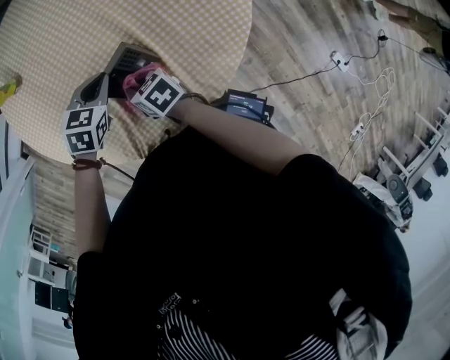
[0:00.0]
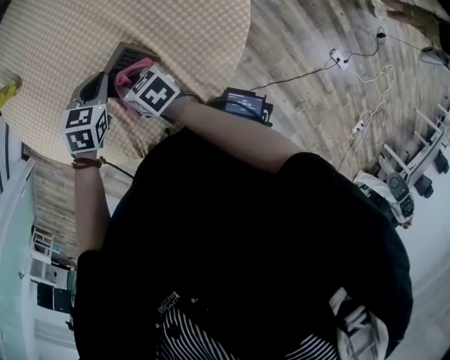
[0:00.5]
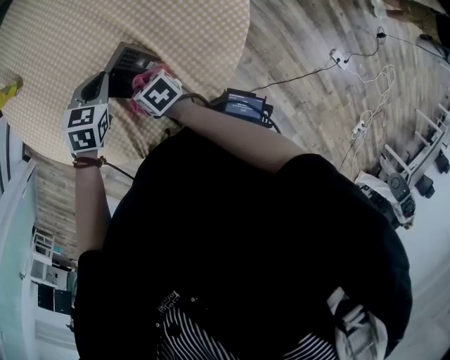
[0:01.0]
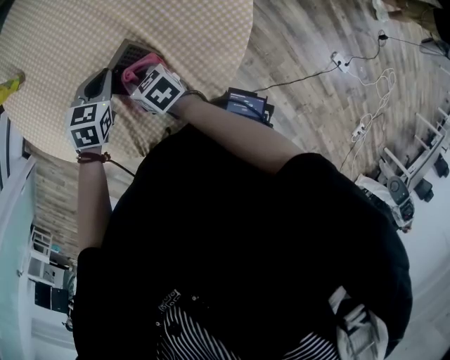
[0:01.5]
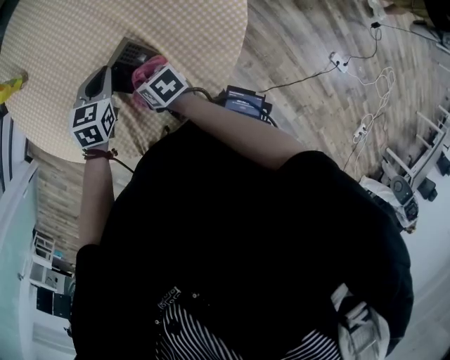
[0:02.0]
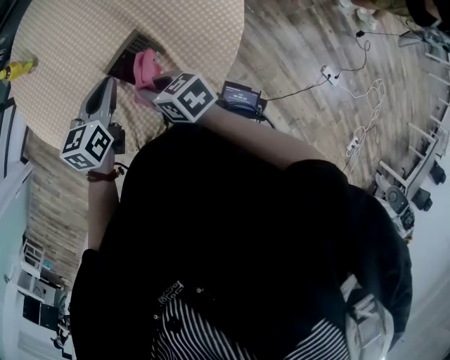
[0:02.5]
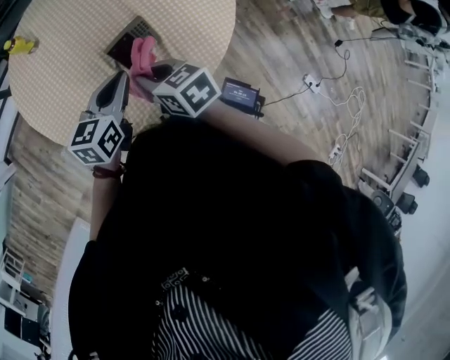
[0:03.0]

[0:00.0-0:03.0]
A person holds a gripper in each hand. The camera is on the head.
0:01.5 to 0:03.0: Both grippers travel together upward and backward, roughly 15 cm. The left gripper turns by some 40 degrees.

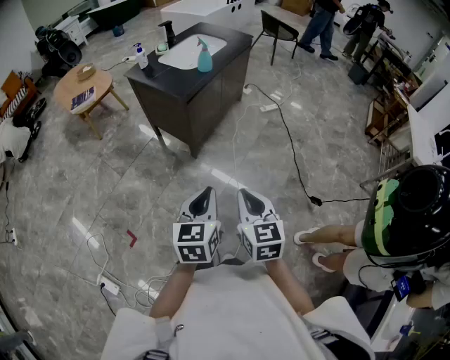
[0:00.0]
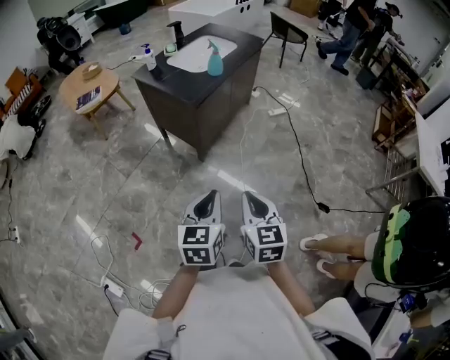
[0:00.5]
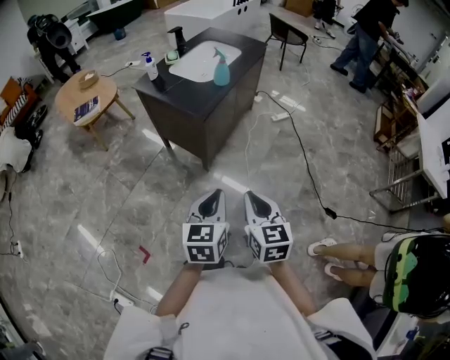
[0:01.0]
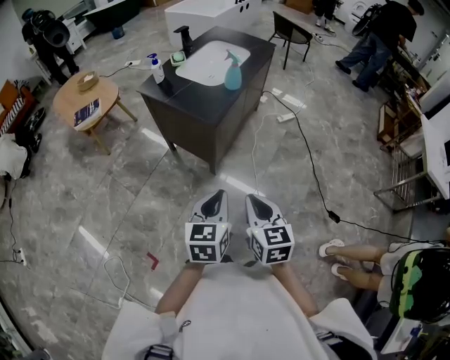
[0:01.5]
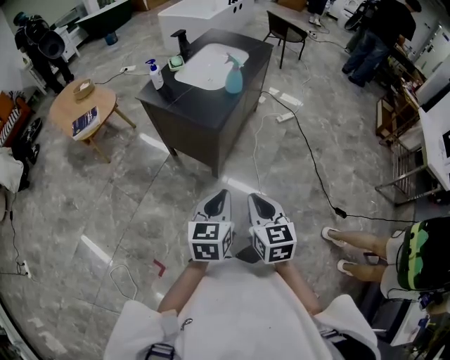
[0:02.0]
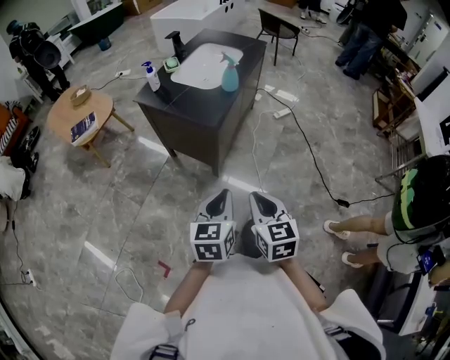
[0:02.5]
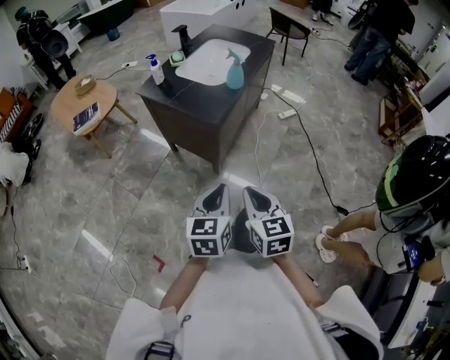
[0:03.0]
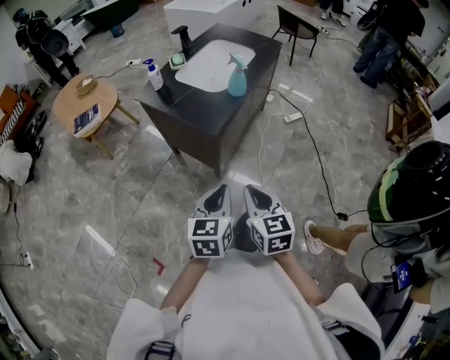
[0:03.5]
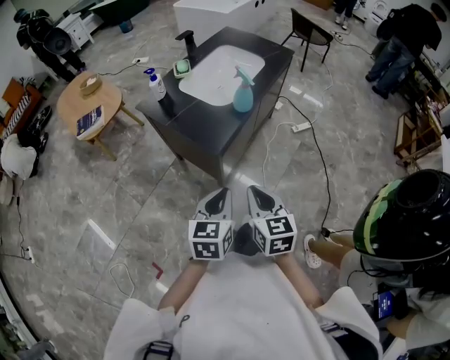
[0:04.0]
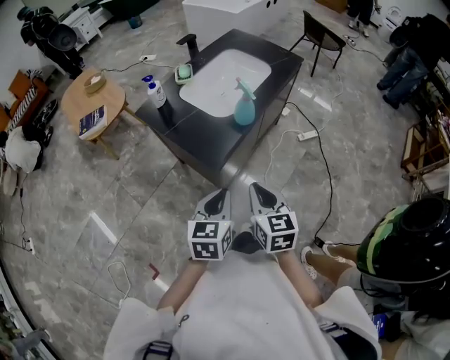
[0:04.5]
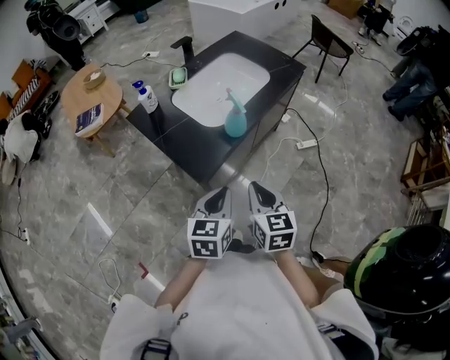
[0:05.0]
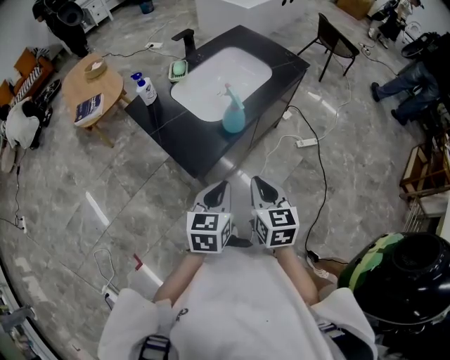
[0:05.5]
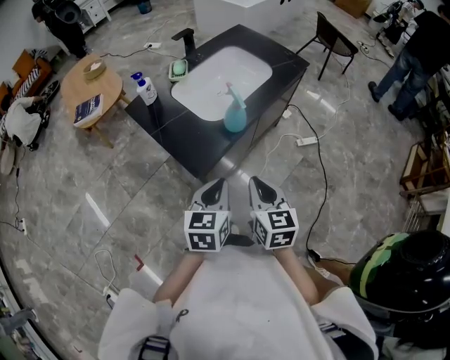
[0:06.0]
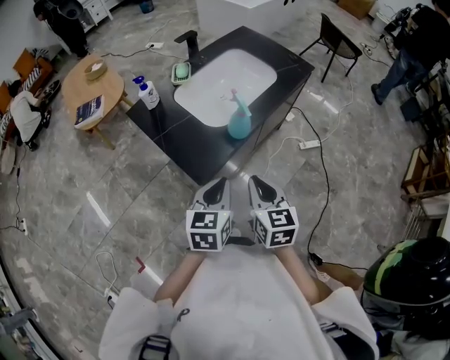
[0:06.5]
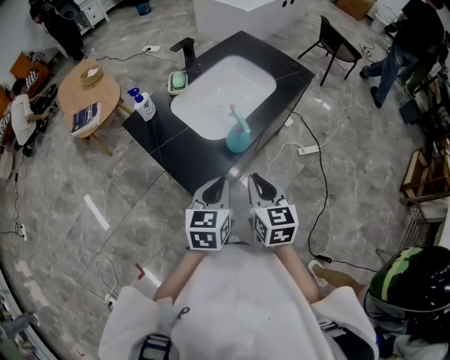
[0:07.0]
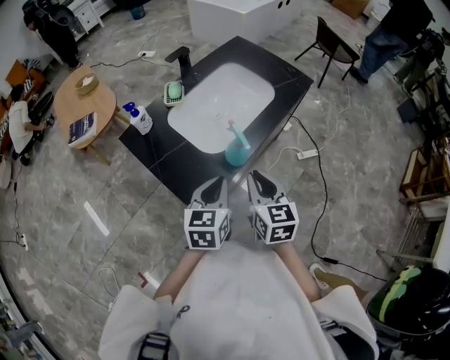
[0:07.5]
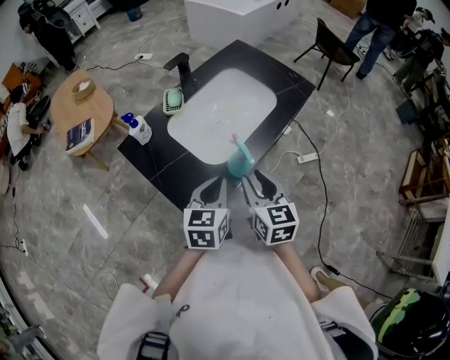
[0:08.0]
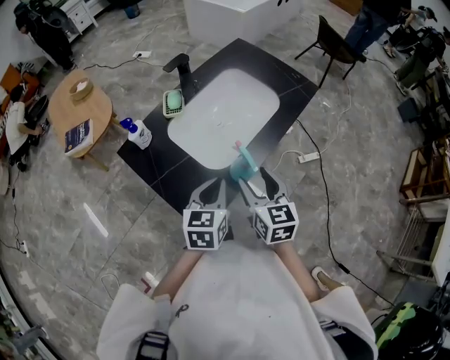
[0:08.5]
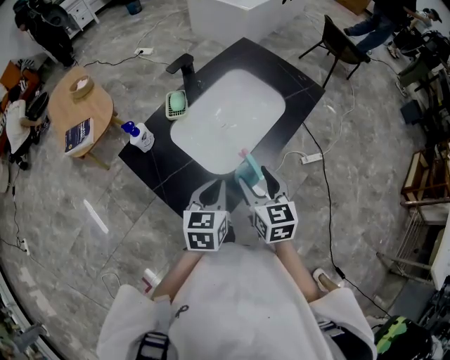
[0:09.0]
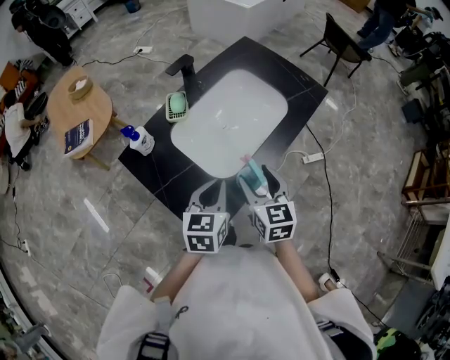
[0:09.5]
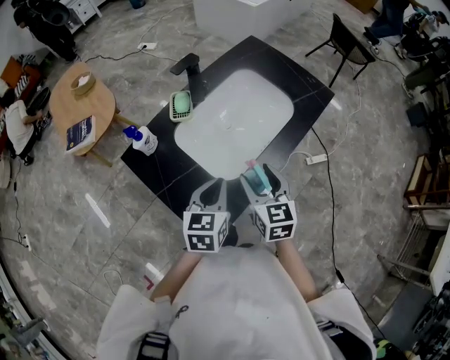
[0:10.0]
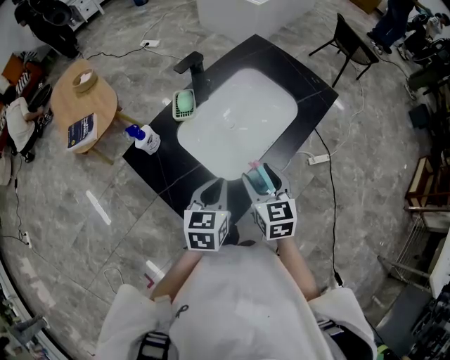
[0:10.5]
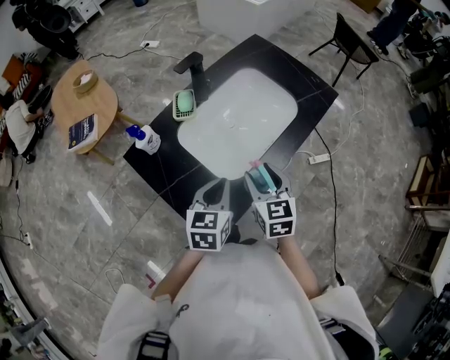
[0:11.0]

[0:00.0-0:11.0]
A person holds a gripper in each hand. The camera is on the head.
0:00.0 to 0:02.0: The grippers both shift forward and to the left by approximately 25 cm.
0:02.0 to 0:03.5: The grippers both shift forward by some 10 cm.
0:03.5 to 0:05.5: Both grippers move forward and to the right, about 25 cm.
0:05.5 to 0:07.5: The two grippers go roughly 15 cm forward.
0:07.5 to 0:09.0: The two grippers go some 10 cm forward. The right gripper opens up.
0:09.0 to 0:11.0: The right gripper ends up roughly 5 cm from where it was.

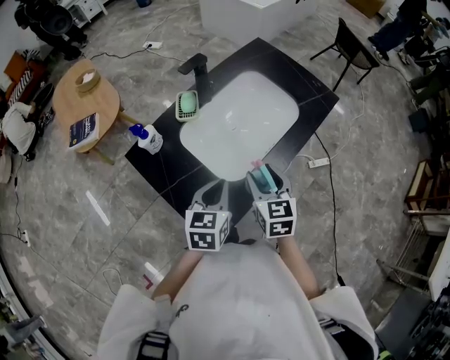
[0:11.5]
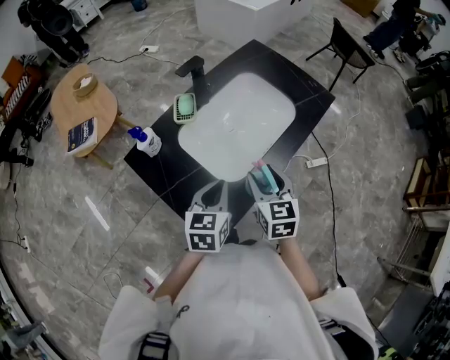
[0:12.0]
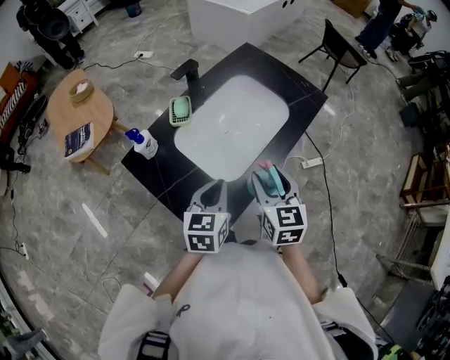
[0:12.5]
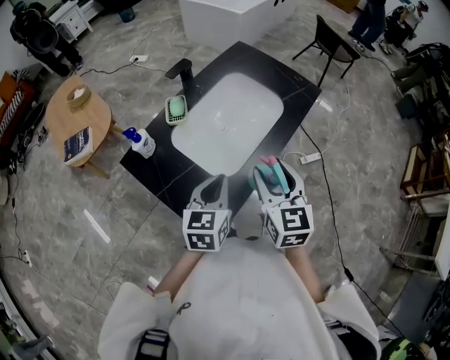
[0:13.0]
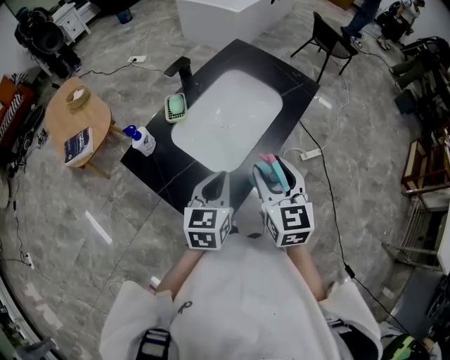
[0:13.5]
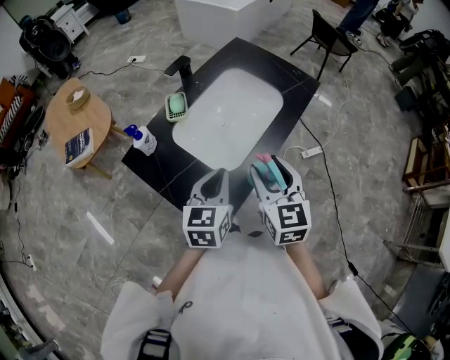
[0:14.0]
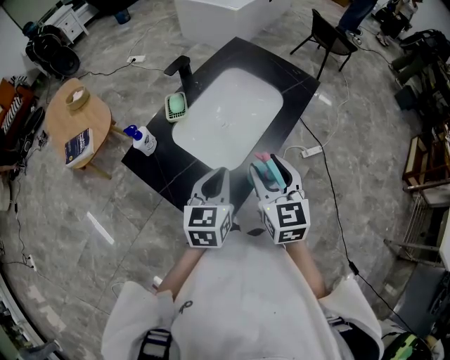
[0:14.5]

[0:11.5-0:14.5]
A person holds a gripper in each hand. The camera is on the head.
0:11.5 to 0:13.0: The right gripper goes some 10 cm upward.
0:13.0 to 0:14.5: The grippers make only small movements.

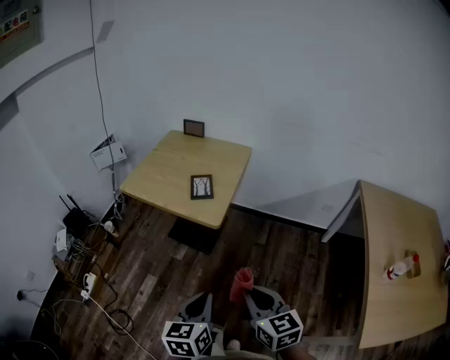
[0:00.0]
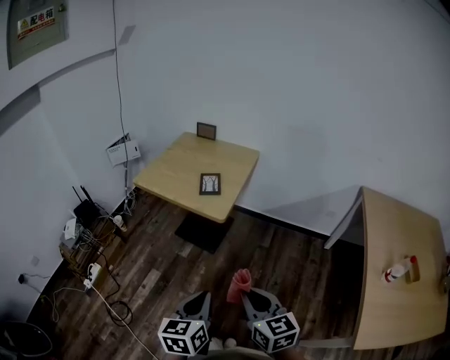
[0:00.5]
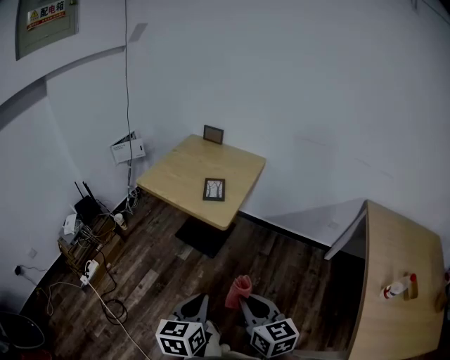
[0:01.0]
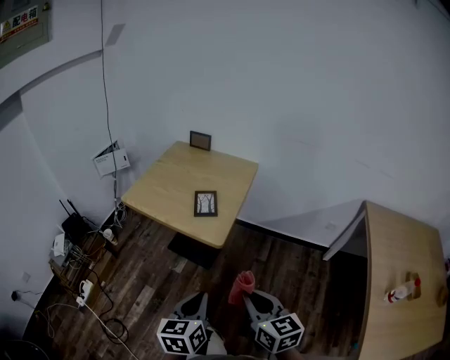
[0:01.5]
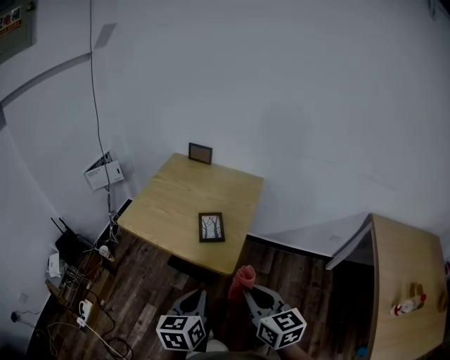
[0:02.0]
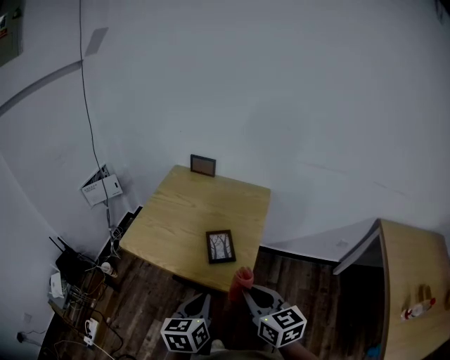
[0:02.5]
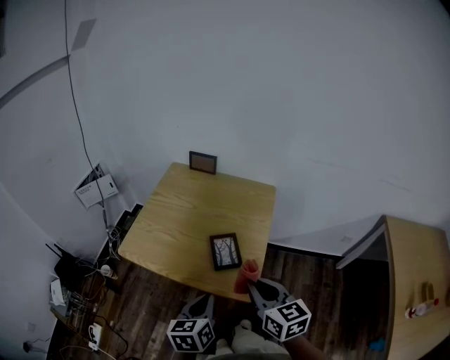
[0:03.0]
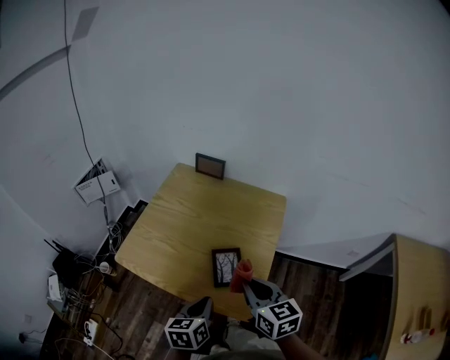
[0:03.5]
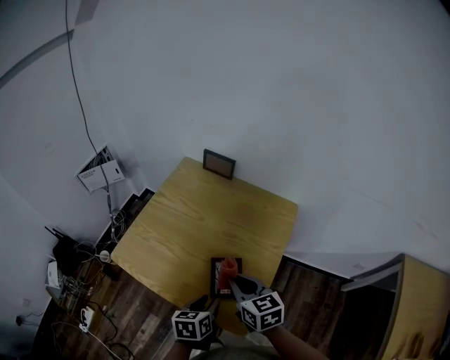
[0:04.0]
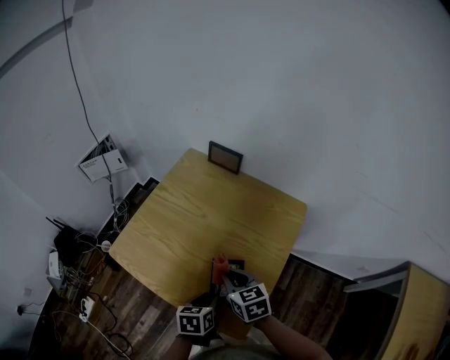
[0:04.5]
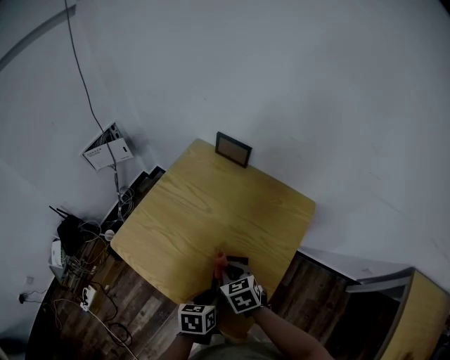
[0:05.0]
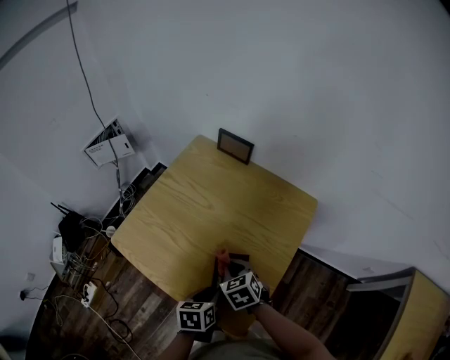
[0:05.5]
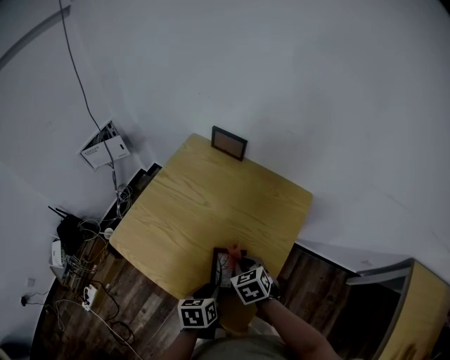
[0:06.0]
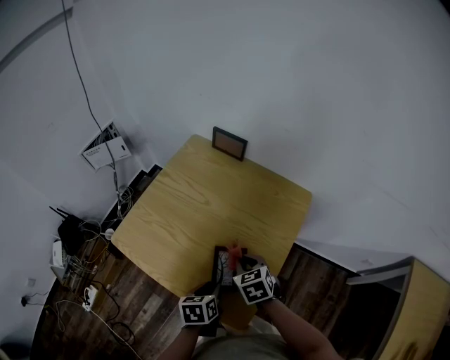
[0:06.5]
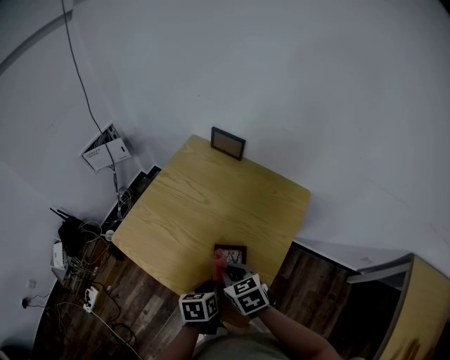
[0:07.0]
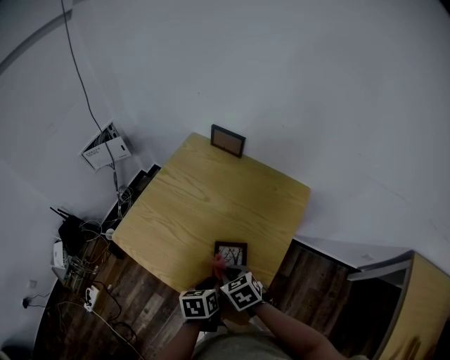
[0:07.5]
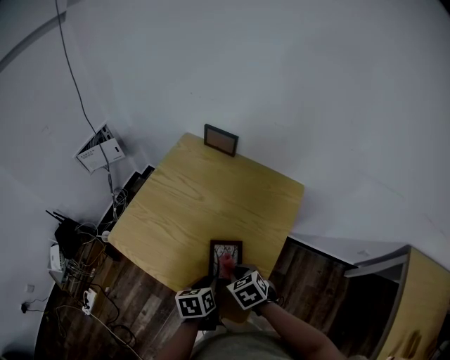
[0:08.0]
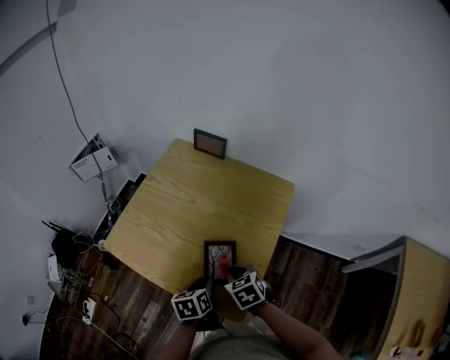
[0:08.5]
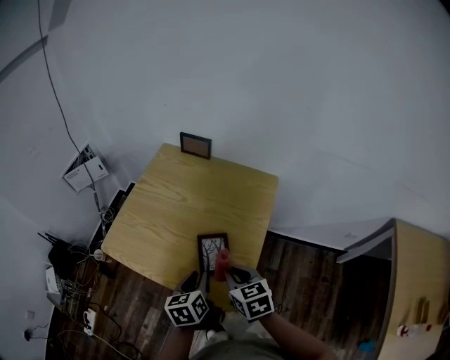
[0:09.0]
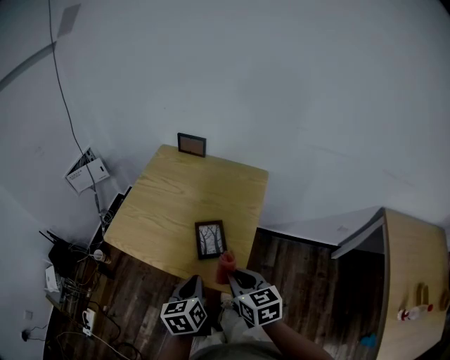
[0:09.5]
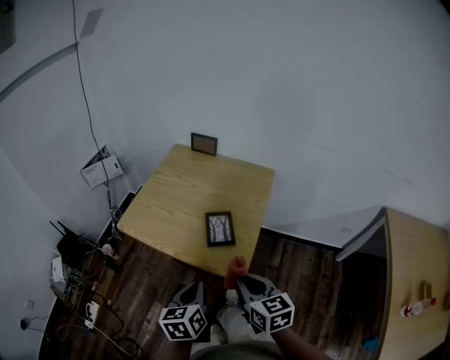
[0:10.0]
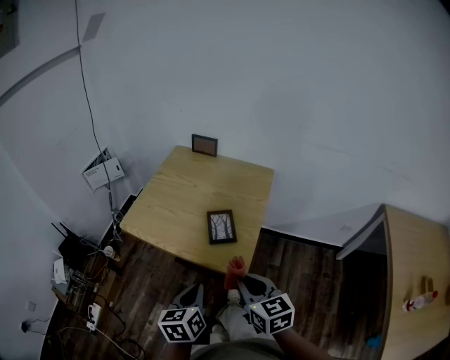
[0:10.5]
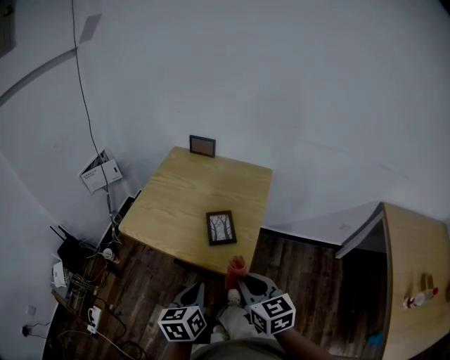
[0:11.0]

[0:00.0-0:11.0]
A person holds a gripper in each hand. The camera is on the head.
0:00.0 to 0:02.0: Both grippers travel together forward, roughly 20 cm.
0:02.0 to 0:03.5: The right gripper heads forward, covering some 25 cm, while the left gripper travels forward and downward by about 20 cm.
0:03.5 to 0:05.5: The left gripper moves downward and forward, approximately 15 cm, changes its angle by some 20 degrees, and opens; the right gripper shifts roughly 20 cm downward and forward, and points its fingers approximately 30 degrees further downward.
0:05.5 to 0:07.5: The right gripper is displaced backward by roughly 5 cm.
0:07.5 to 0:09.0: The left gripper shifts about 5 cm upward, while the right gripper is displaced upward and to the right by approximately 10 cm, and turns by about 30 degrees.
0:09.0 to 0:11.0: Both grippers move backward and upward, approximately 20 cm. The left gripper closes up.
